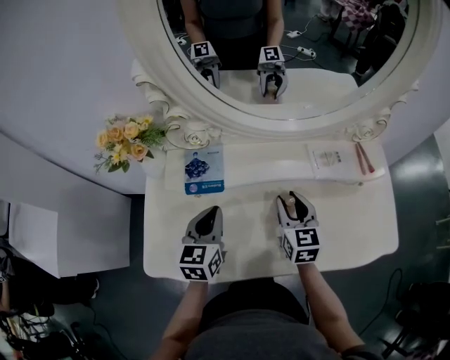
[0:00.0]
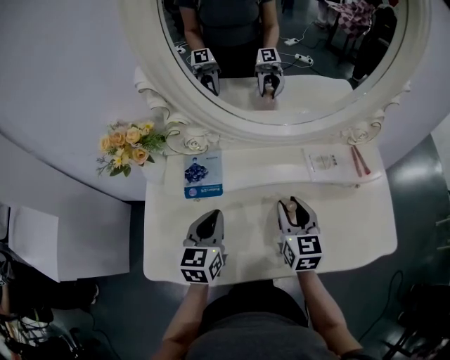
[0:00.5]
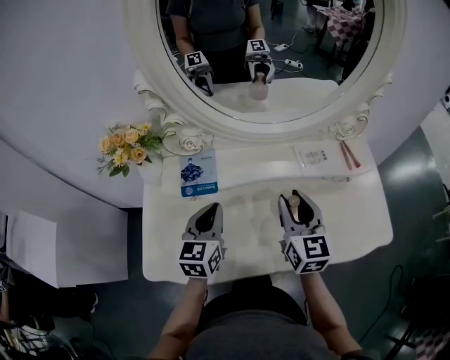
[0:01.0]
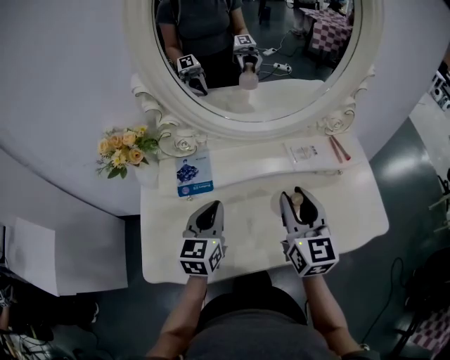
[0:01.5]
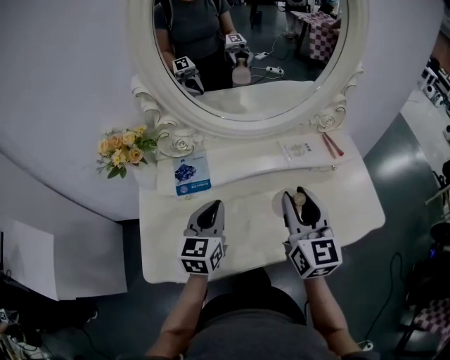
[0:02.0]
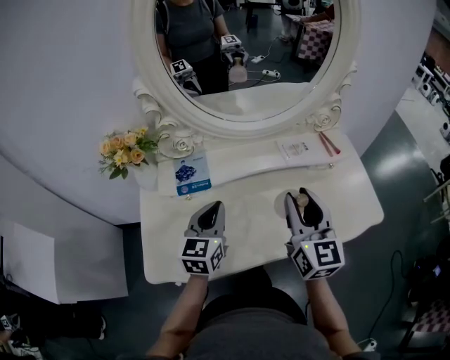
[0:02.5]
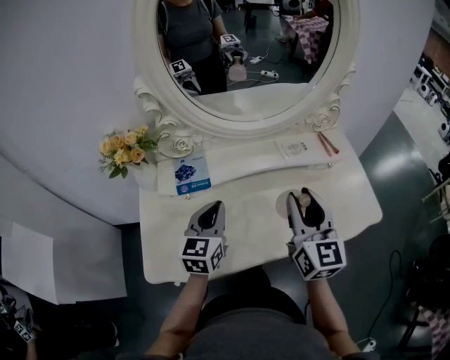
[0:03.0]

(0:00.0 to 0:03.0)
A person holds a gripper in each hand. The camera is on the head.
0:00.0 - 0:01.5: The right gripper is displaced upward and backward by about 15 cm. The left gripper ends up some 5 cm from where it was.
0:01.5 - 0:03.0: The right gripper shifts by some 5 cm.

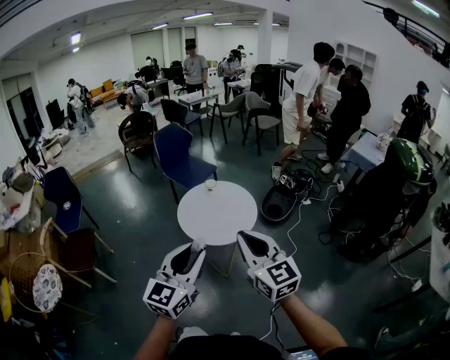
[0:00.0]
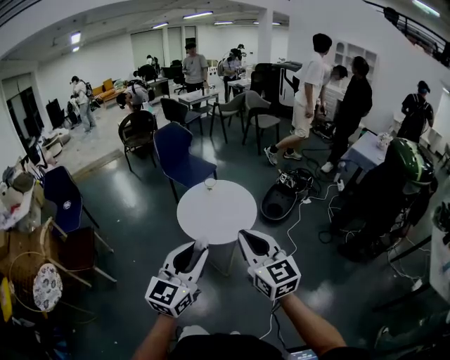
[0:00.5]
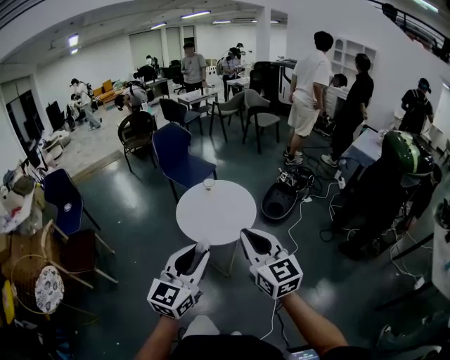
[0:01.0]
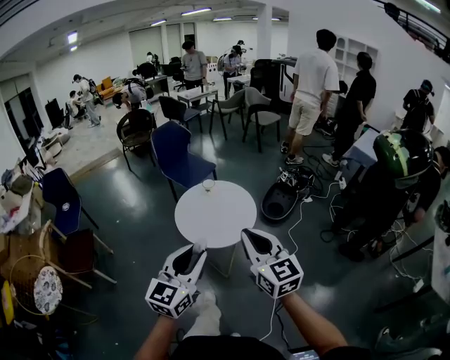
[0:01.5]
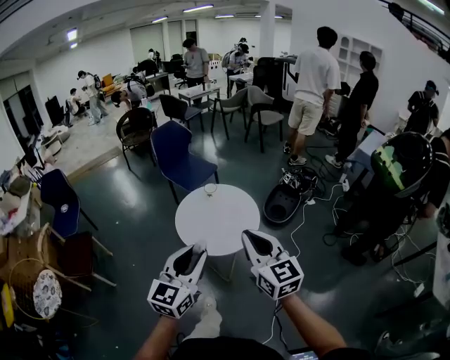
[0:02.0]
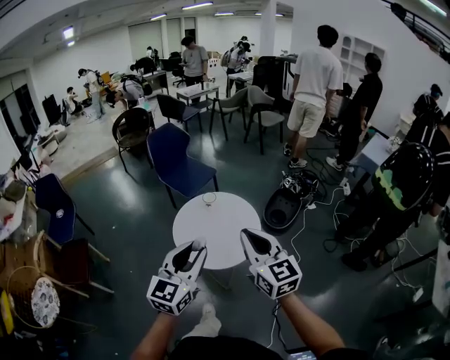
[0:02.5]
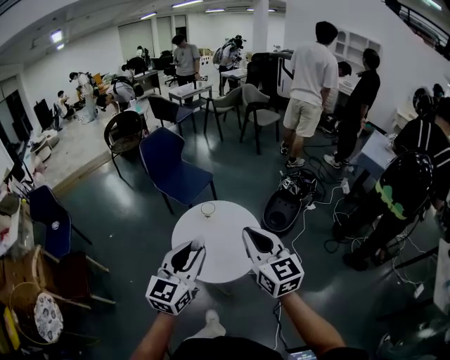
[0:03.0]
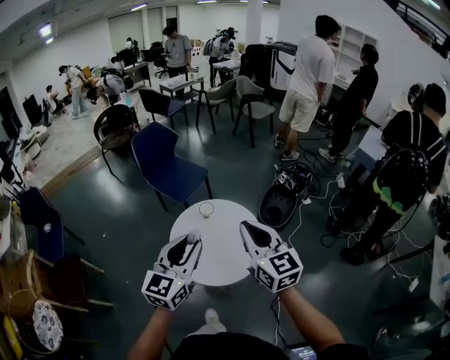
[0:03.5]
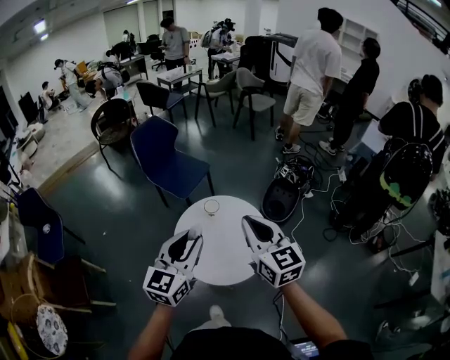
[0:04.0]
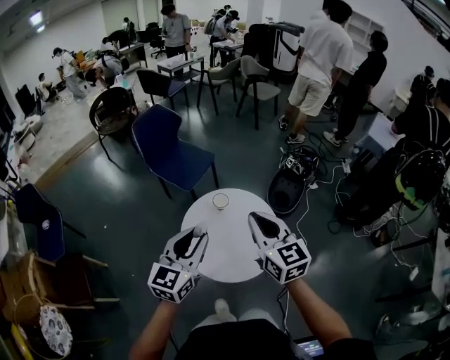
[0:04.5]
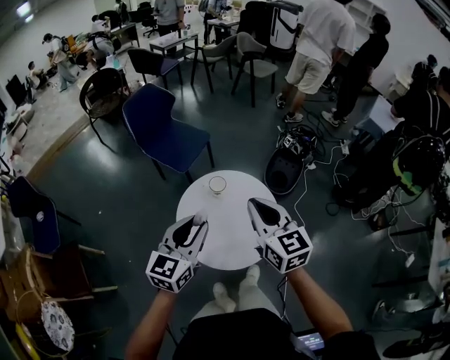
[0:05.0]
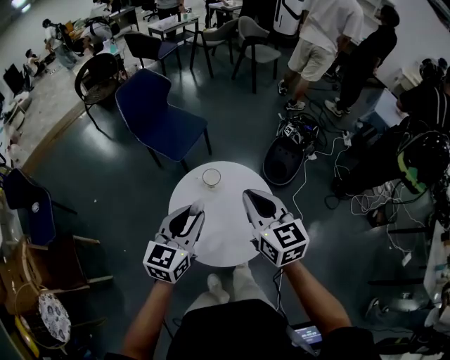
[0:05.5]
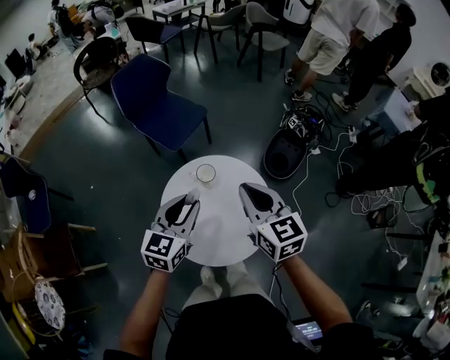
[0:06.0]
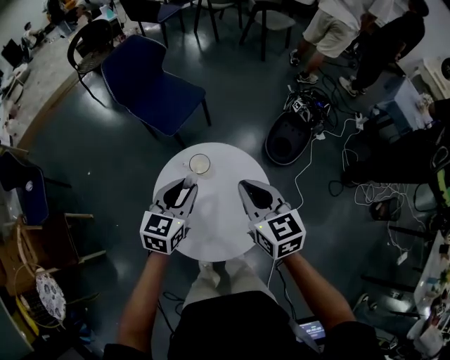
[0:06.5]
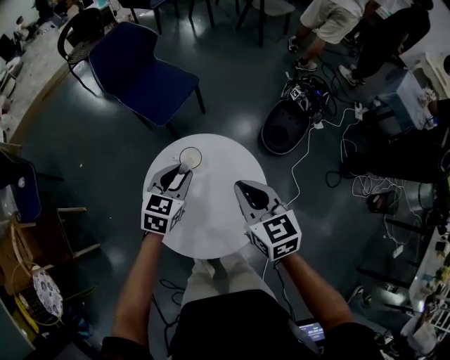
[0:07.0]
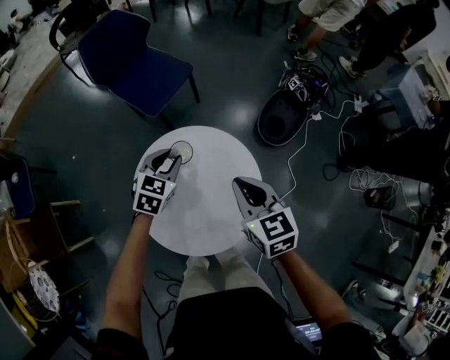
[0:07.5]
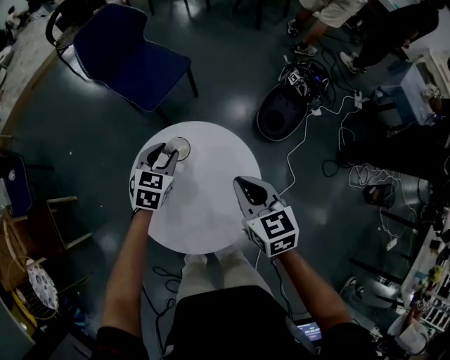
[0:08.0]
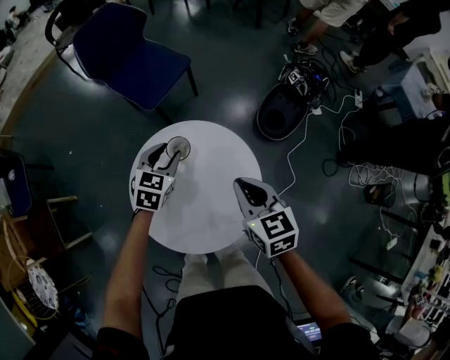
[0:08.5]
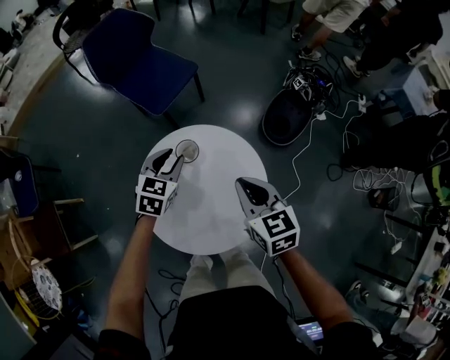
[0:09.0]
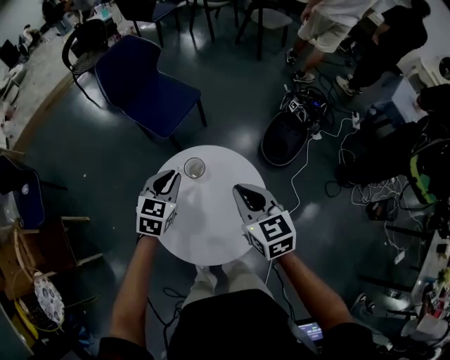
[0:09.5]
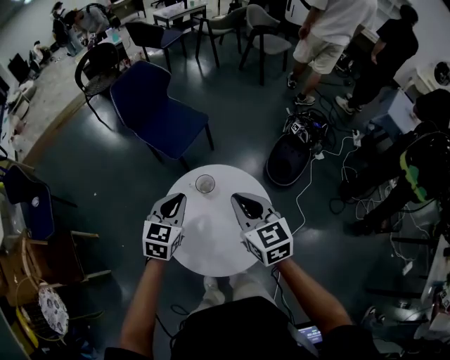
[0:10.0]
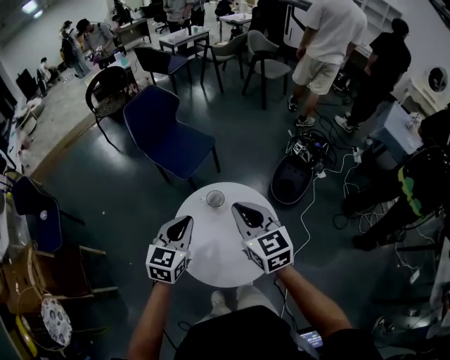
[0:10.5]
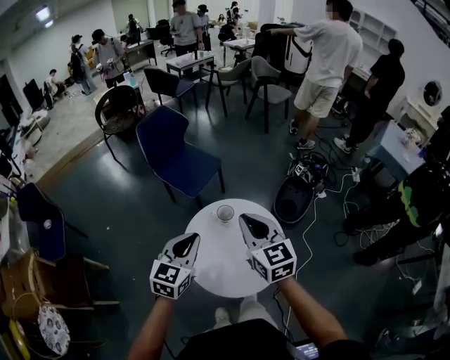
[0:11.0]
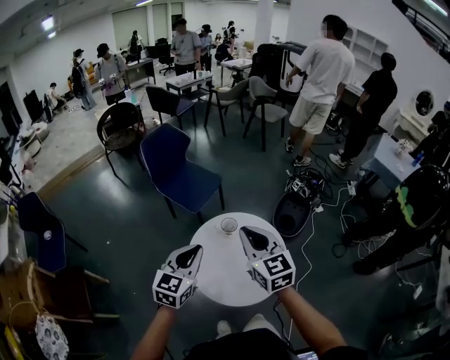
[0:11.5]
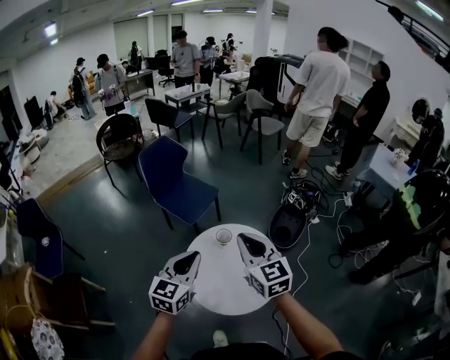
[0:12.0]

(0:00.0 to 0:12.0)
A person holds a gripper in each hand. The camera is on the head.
0:00.0 - 0:02.0: Both grippers move forward, about 10 cm.
0:02.0 - 0:04.0: Both grippers travel together forward, about 30 cm.
0:04.0 - 0:06.0: Both grippers travel together forward and downward, about 25 cm.
0:06.0 - 0:08.0: The right gripper is displaced downward, to the right and forward by about 20 cm, while the left gripper moves downward and forward, roughly 30 cm, and changes its angle by about 30 degrees.
0:08.0 - 0:10.0: The right gripper heads upward and to the left, covering some 15 cm; the left gripper moves upward and backward, roughly 20 cm, and closes.
0:10.0 - 0:12.0: The right gripper travels upward, backward and to the left by some 20 cm; the left gripper travels backward, upward and to the left by roughly 25 cm.

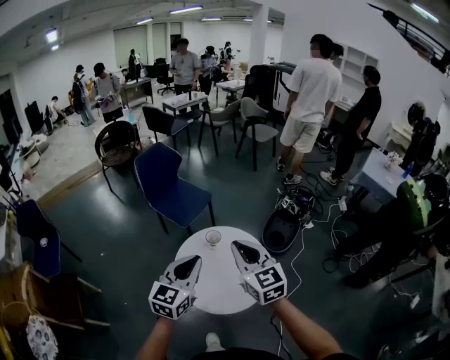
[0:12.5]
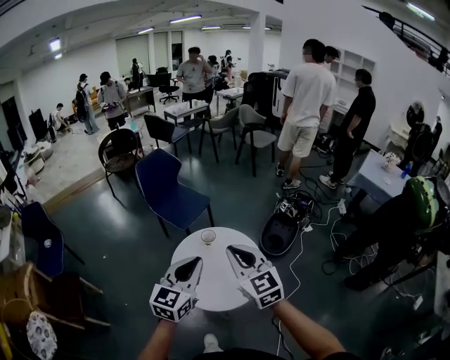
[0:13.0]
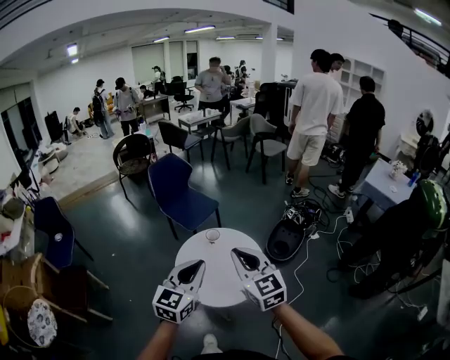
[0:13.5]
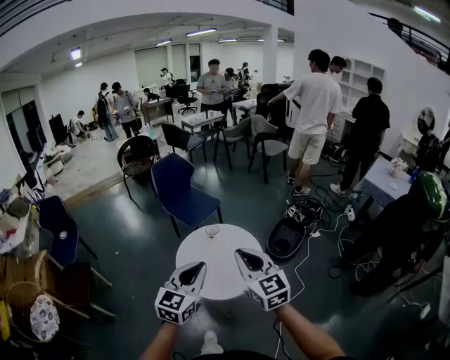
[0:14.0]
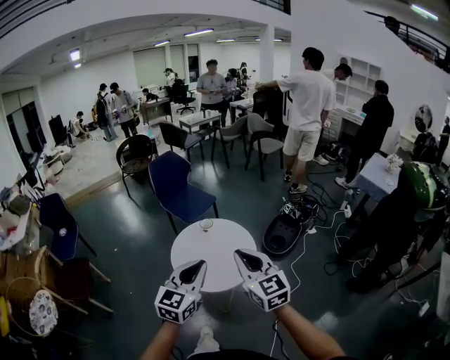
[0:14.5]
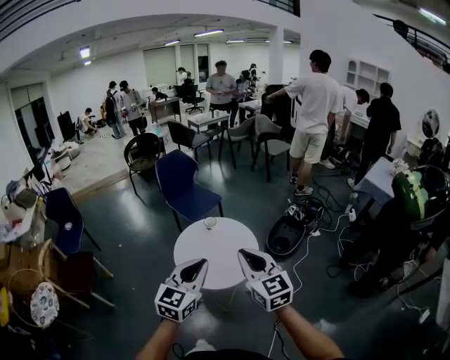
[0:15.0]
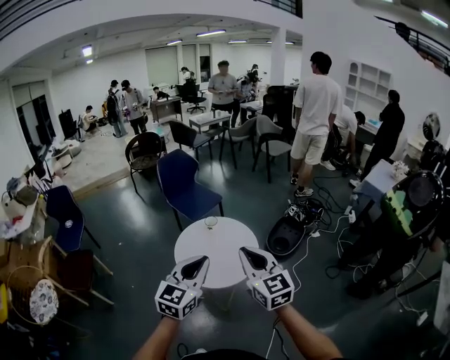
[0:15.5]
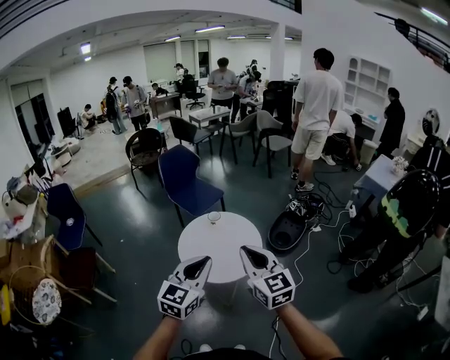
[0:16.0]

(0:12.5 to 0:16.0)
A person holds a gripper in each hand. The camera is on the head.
0:12.5 - 0:14.5: The two grippers go roughly 30 cm backward and to the right.
0:14.5 - 0:16.0: The grippers make only small movements.

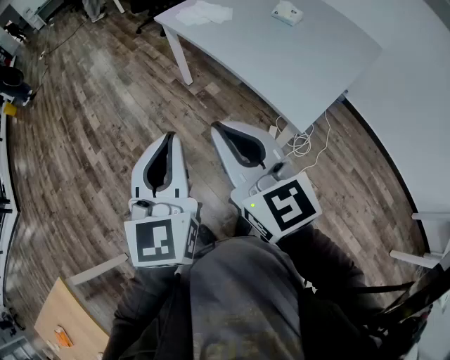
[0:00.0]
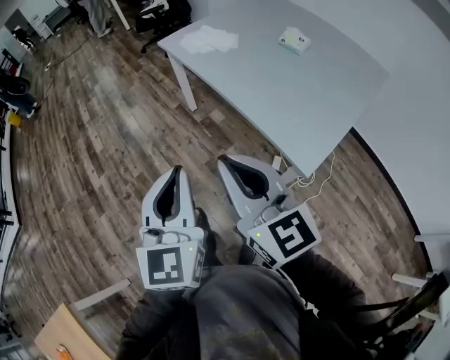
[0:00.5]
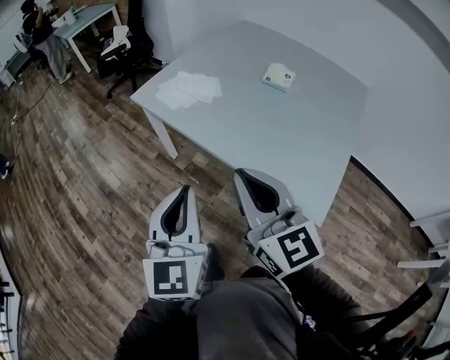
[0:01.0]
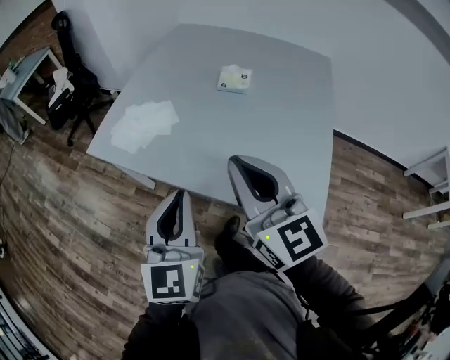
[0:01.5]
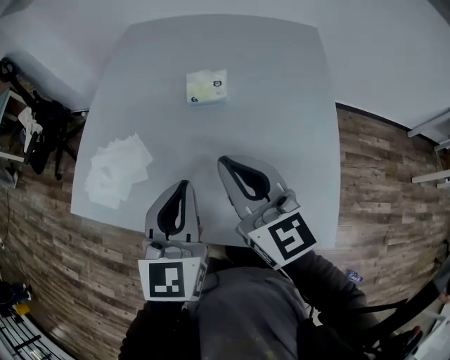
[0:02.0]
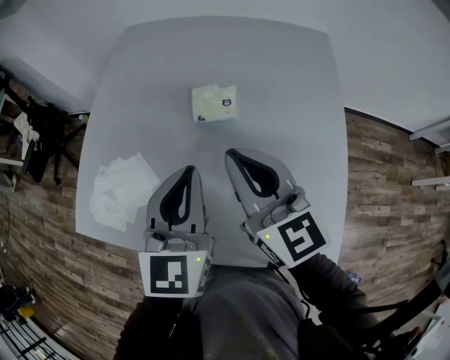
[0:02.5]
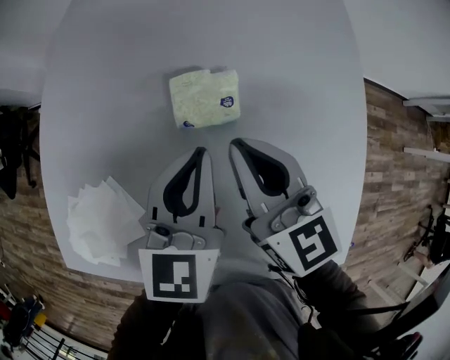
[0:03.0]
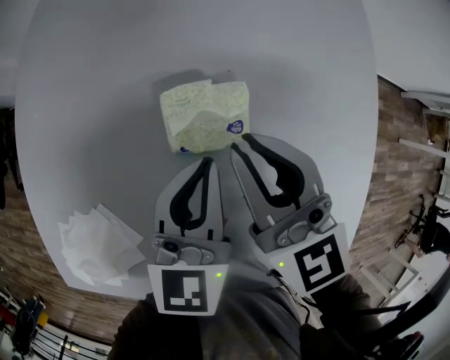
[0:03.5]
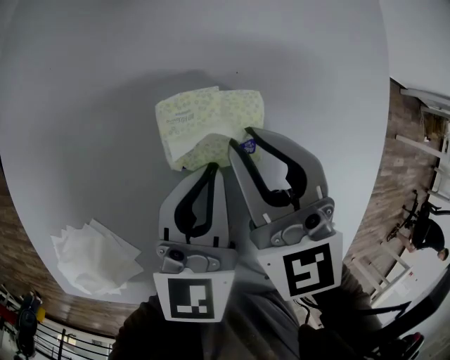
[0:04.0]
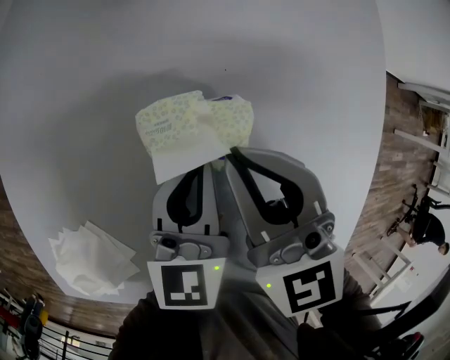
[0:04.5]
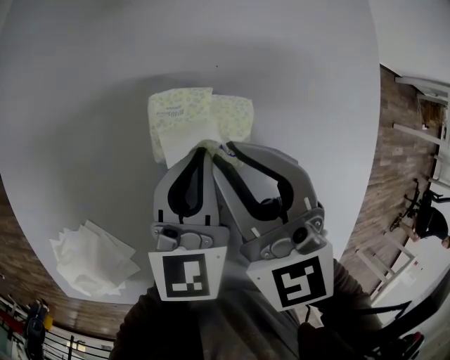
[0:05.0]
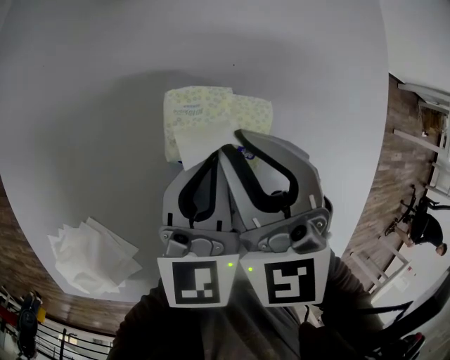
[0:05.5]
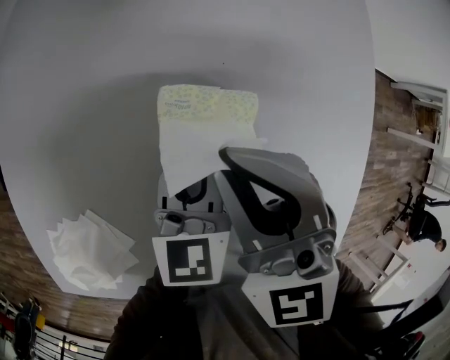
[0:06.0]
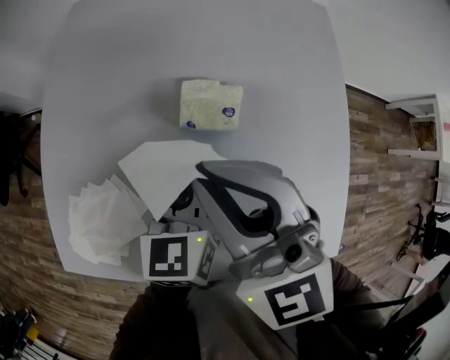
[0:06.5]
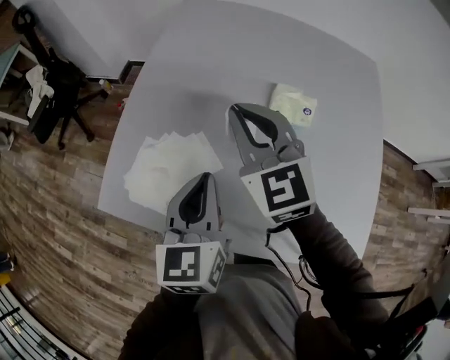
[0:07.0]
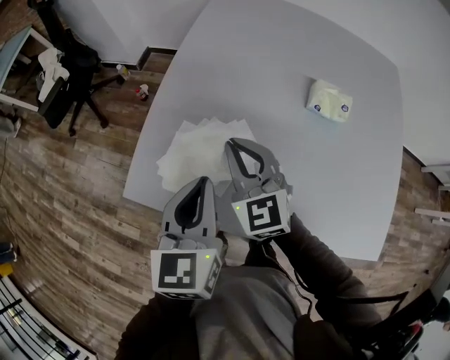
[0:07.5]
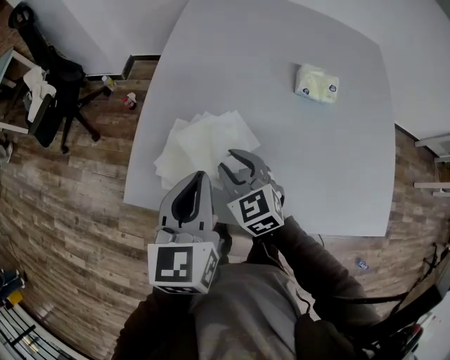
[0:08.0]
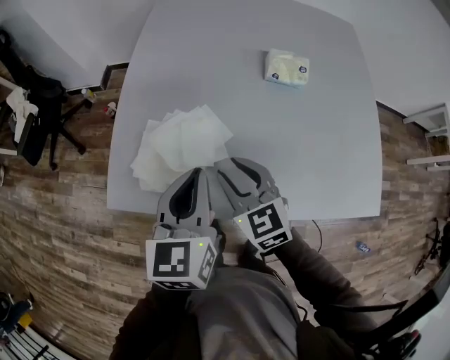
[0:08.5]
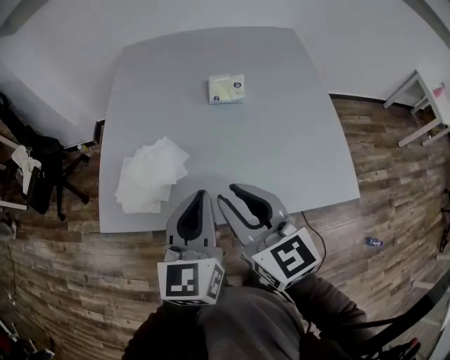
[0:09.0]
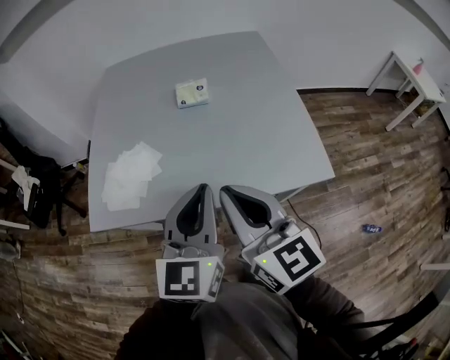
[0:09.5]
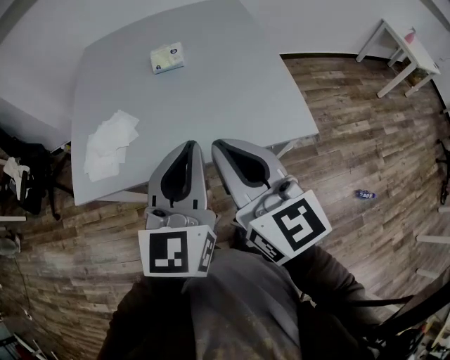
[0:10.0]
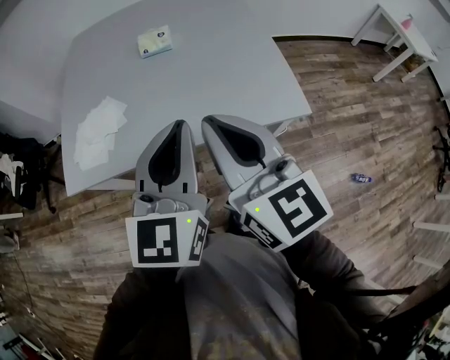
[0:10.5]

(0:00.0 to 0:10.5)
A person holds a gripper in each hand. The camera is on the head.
0:00.0 - 0:02.0: Both grippers are carried approximately 60 cm. The left gripper turns by about 50 degrees; the right gripper swivels some 40 degrees.
0:02.0 - 0:04.0: The two grippers go some 35 cm forward and downward. The right gripper changes its angle by about 30 degrees. The left gripper changes its angle by approximately 20 degrees.
0:04.0 - 0:06.5: The left gripper moves upward and backward, approximately 10 cm. The right gripper goes roughly 25 cm upward and backward.
0:06.5 - 0:08.5: The right gripper shifts some 35 cm to the left, downward and backward, swivels about 20 degrees, and opens up, while the left gripper is displaced to the left and backward by approximately 35 cm.
0:08.5 - 0:10.5: Both grippers move to the right, backward and upward, approximately 40 cm. The left gripper changes its angle by about 30 degrees. Meanwhile the right gripper turns by roughly 40 degrees, and closes its fingers.